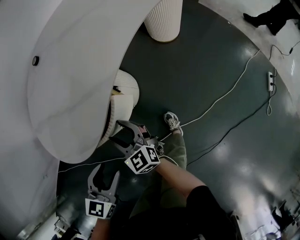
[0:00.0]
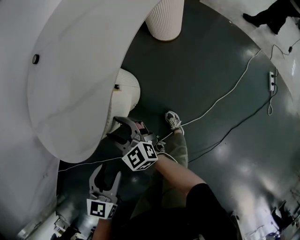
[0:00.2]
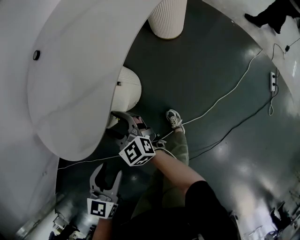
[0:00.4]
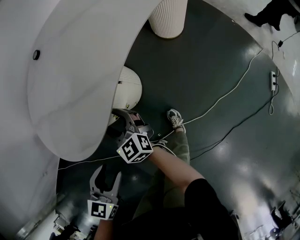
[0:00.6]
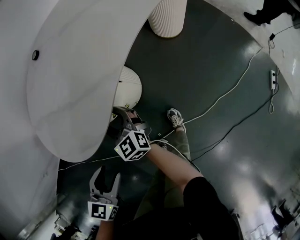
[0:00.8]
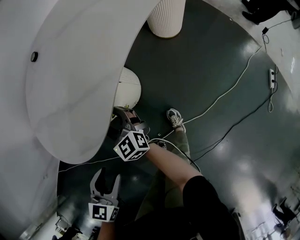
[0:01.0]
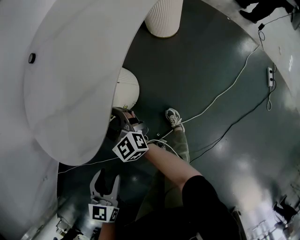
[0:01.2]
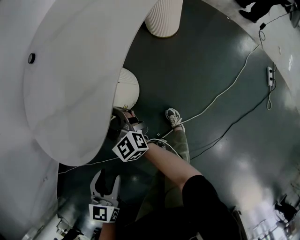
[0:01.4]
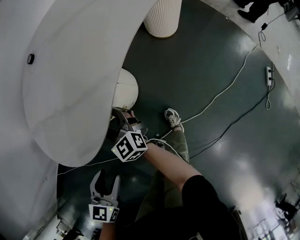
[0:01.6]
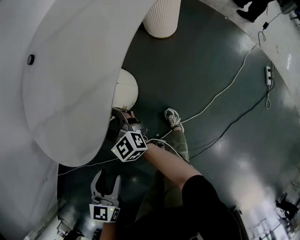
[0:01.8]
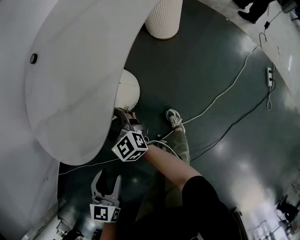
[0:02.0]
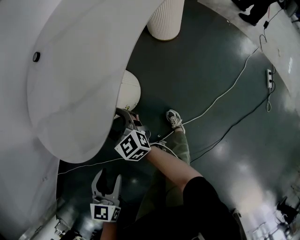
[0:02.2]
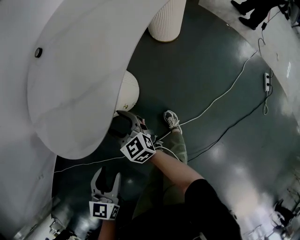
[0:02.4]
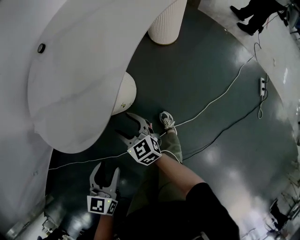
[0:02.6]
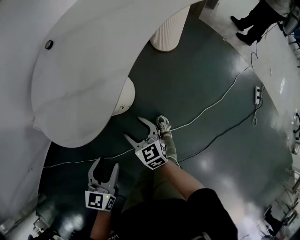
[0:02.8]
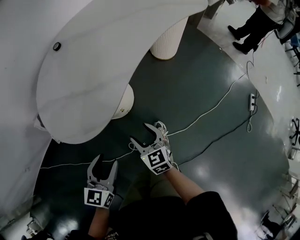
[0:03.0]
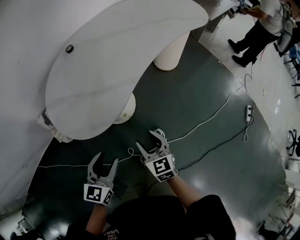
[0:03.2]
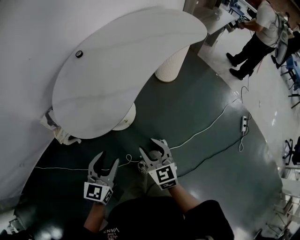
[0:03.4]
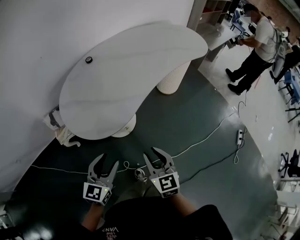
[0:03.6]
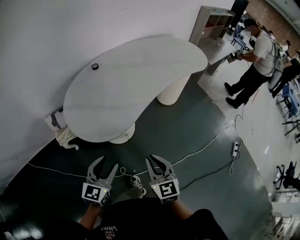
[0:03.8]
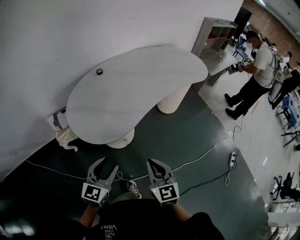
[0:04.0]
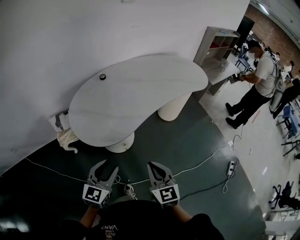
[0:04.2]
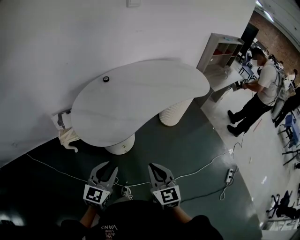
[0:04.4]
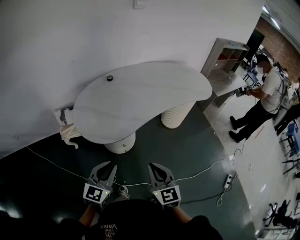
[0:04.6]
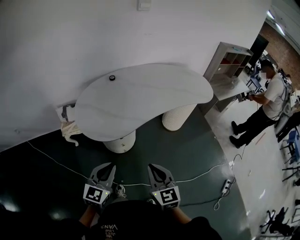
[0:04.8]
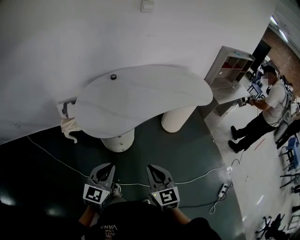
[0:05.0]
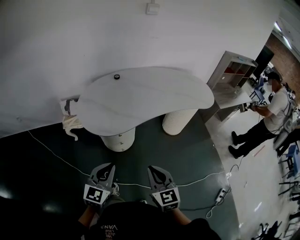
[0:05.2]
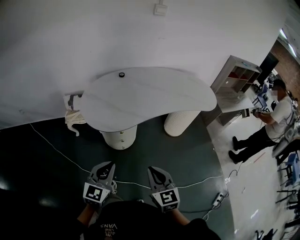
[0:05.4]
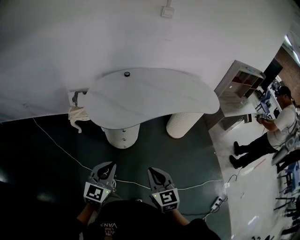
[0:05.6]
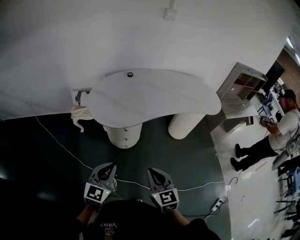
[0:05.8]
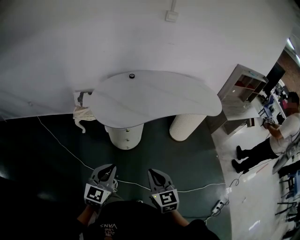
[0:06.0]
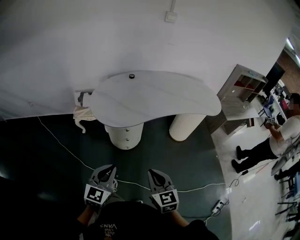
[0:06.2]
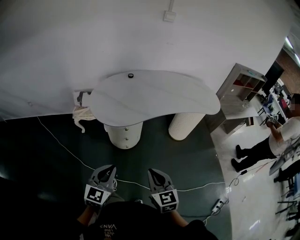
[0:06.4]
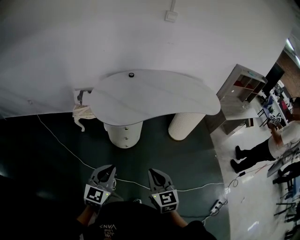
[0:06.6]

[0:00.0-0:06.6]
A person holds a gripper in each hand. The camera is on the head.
0:00.0 to 0:01.6: The left gripper moves roughly 5 cm. Meanwhile the right gripper moves forward, approximately 5 cm.
0:01.6 to 0:03.2: The right gripper moves backward, to the right and upward, approximately 25 cm, while the left gripper travels upward by about 10 cm.
0:03.2 to 0:05.0: The right gripper goes some 25 cm upward and to the right, rotates about 20 degrees, and closes up. Meanwhile the left gripper shifts roughly 15 cm upward, to the right and backward, and closes up.
0:05.0 to 0:06.6: Both grippers move backward, roughly 10 cm.

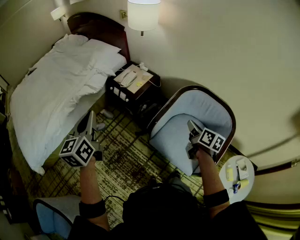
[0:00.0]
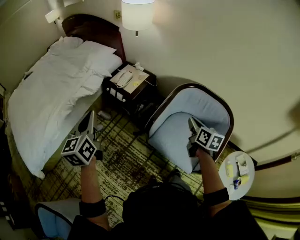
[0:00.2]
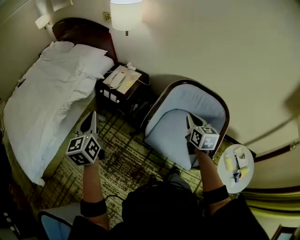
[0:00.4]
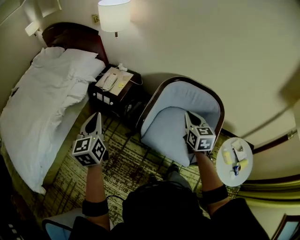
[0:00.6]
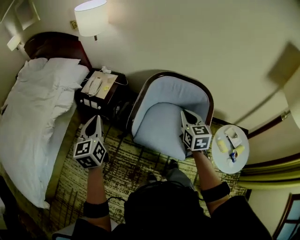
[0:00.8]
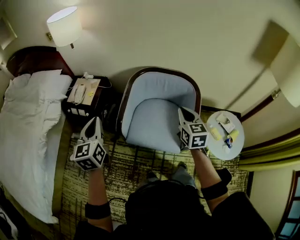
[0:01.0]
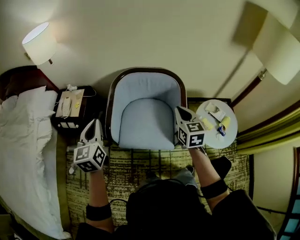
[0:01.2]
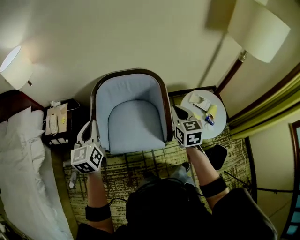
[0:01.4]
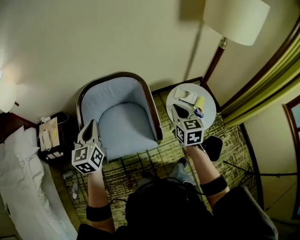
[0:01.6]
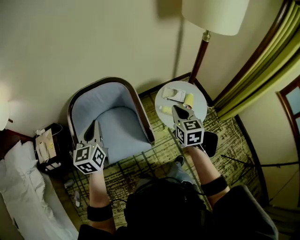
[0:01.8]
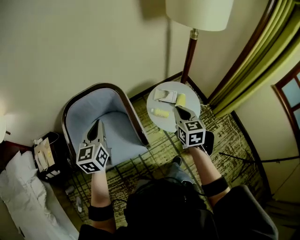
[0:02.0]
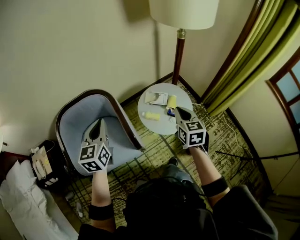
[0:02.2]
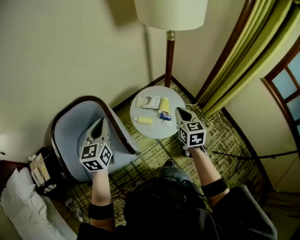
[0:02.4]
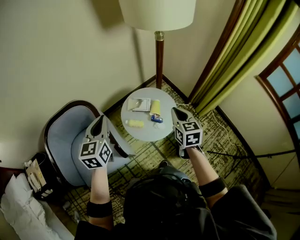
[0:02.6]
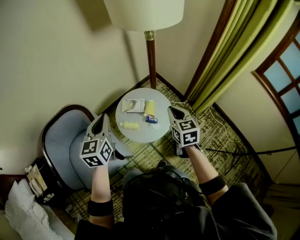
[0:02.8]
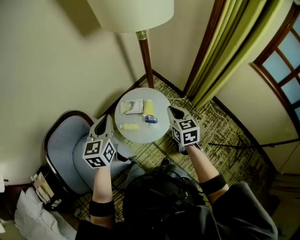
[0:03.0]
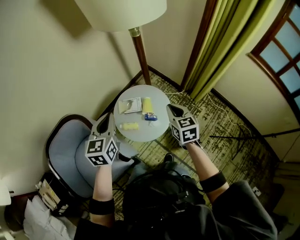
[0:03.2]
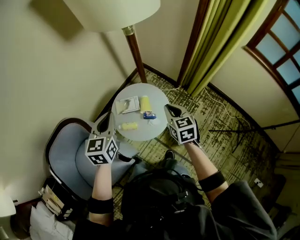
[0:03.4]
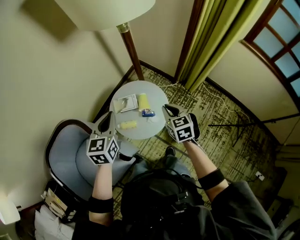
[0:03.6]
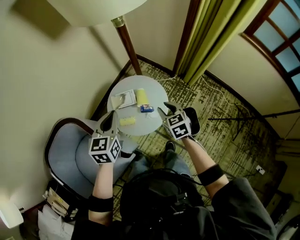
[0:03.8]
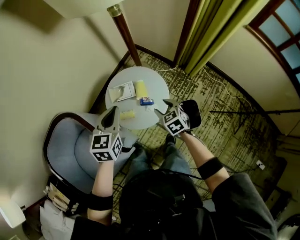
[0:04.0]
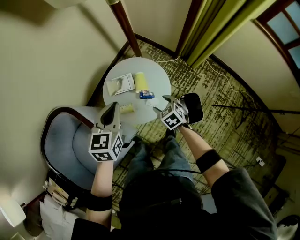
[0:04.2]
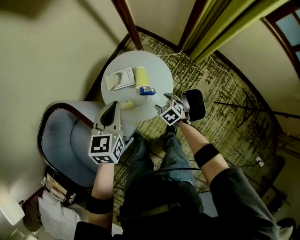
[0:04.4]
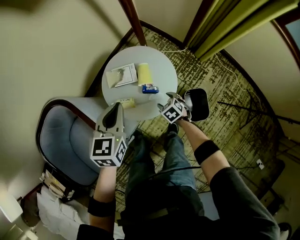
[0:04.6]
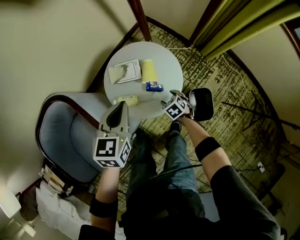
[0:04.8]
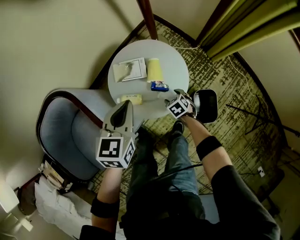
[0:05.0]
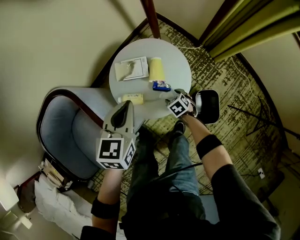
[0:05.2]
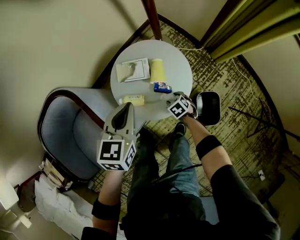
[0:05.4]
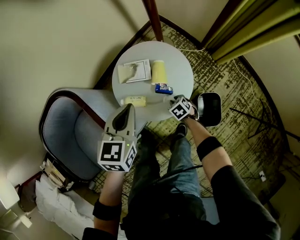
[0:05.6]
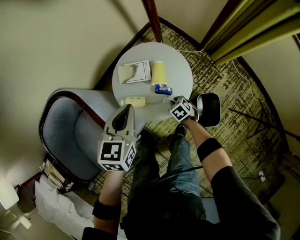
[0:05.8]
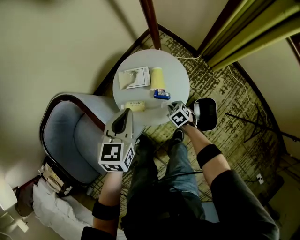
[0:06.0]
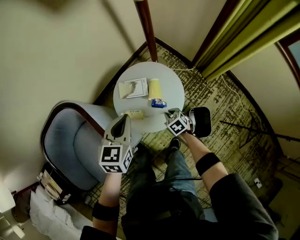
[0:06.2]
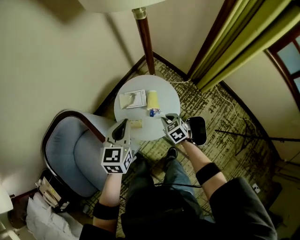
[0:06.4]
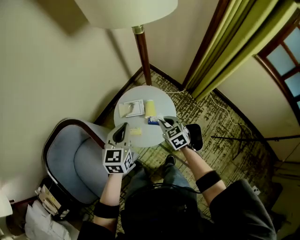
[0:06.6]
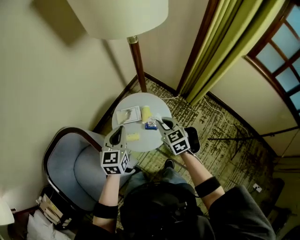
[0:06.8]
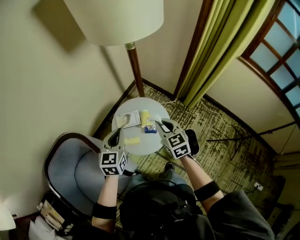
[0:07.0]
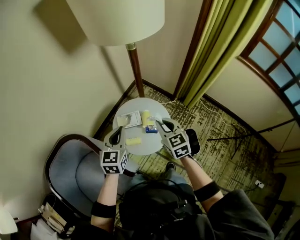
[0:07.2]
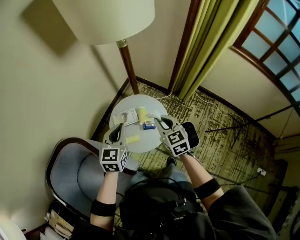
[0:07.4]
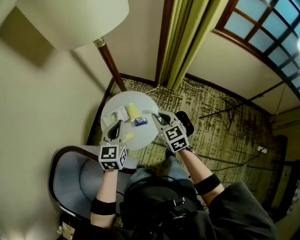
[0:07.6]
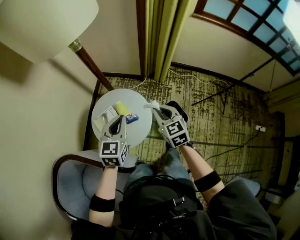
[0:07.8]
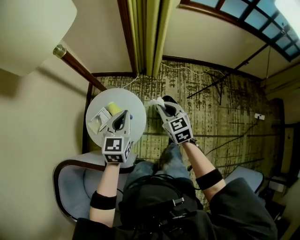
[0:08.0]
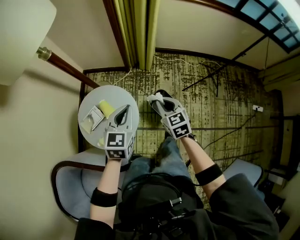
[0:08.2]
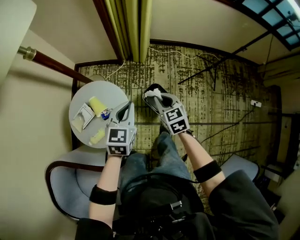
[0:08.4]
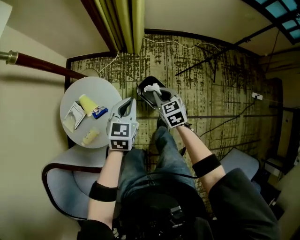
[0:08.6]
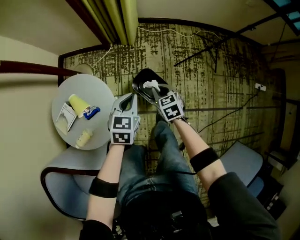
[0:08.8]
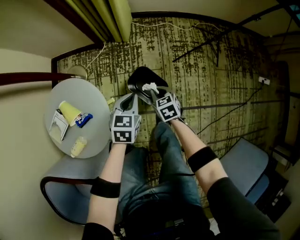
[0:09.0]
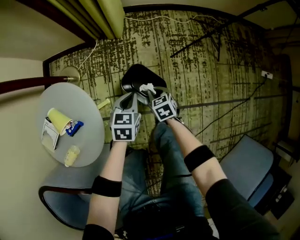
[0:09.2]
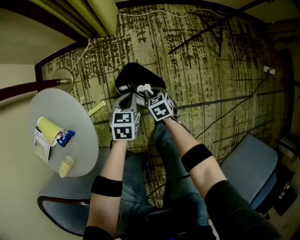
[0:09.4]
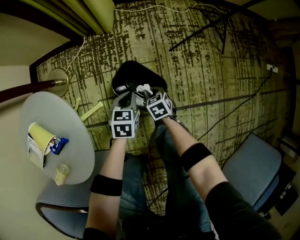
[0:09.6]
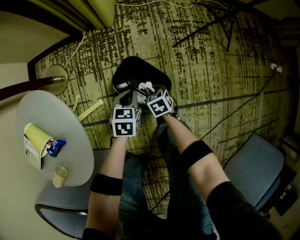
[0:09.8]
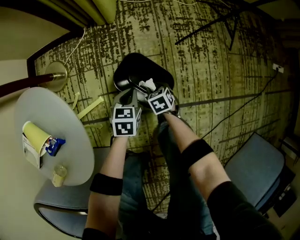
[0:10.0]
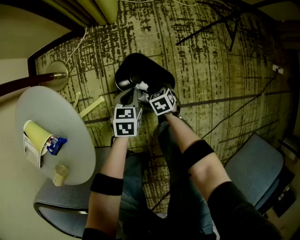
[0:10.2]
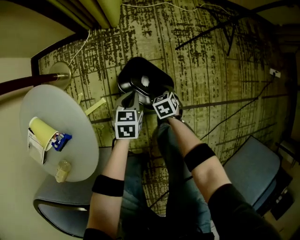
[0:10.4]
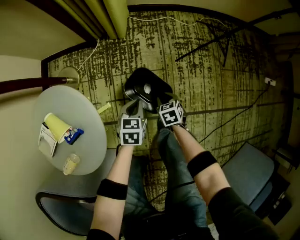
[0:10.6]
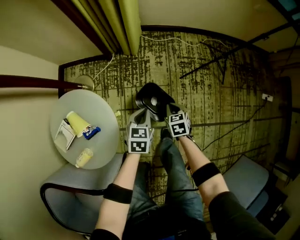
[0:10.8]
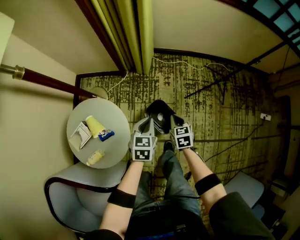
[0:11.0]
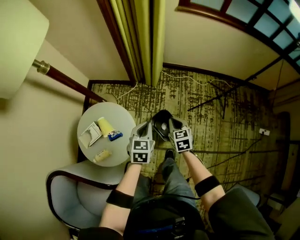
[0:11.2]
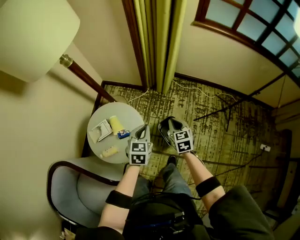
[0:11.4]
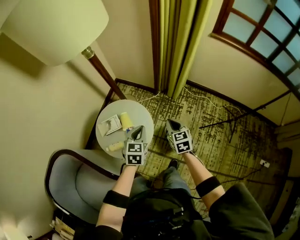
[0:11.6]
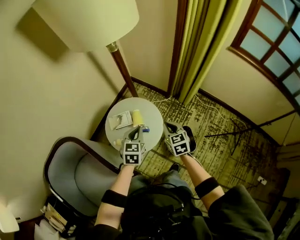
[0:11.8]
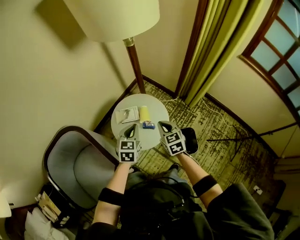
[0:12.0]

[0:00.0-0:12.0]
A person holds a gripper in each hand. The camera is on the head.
0:00.0 to 0:01.6: The right gripper changes place by some 40 cm, and swivels approximately 60 degrees, while the left gripper changes place by some 50 cm, and changes its angle by some 50 degrees.
0:01.6 to 0:03.0: The pair of grippers is taken about 50 cm. The left gripper turns by approximately 30 degrees. Meanwhile the right gripper rotates roughly 20 degrees.
0:03.0 to 0:04.4: The right gripper heads downward, covering roughly 35 cm, points its fingers some 30 degrees further downward, and opens. Meanwhile the left gripper is displaced downward and to the right by about 15 cm, and rotates some 20 degrees.
0:04.4 to 0:06.0: The right gripper is displaced downward by approximately 10 cm, and closes its fingers.
0:06.0 to 0:07.6: The left gripper moves upward, roughly 15 cm, and swivels some 20 degrees. The right gripper shifts approximately 40 cm upward, and tilts its fingers approximately 40 degrees upward.
0:07.6 to 0:09.0: The right gripper shifts about 40 cm downward, and swivels some 40 degrees; the left gripper ends up about 50 cm from where it was, and swivels approximately 40 degrees.
0:09.0 to 0:10.4: The grippers both shift downward by approximately 25 cm. The right gripper opens.
0:10.4 to 0:12.0: Both grippers move upward, about 60 cm. The left gripper changes its angle by roughly 50 degrees. Meanwhile the right gripper points its fingers about 40 degrees further upward, and closes.

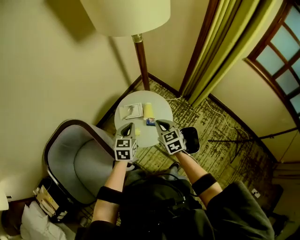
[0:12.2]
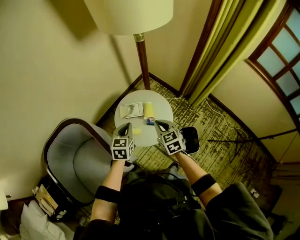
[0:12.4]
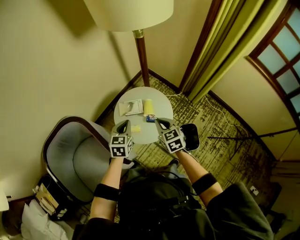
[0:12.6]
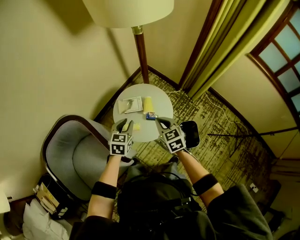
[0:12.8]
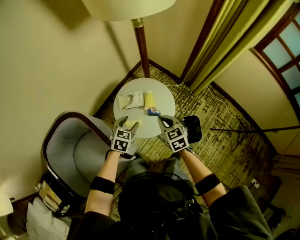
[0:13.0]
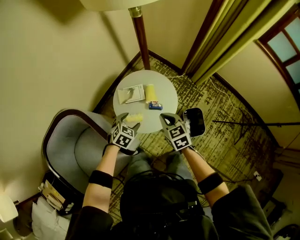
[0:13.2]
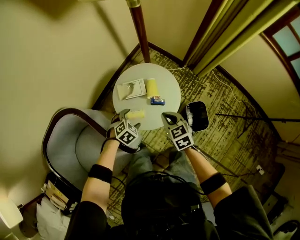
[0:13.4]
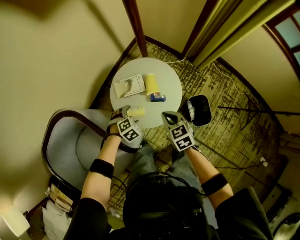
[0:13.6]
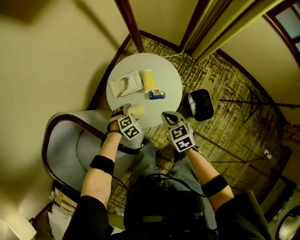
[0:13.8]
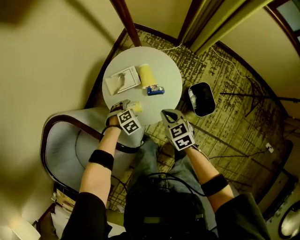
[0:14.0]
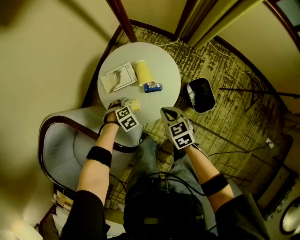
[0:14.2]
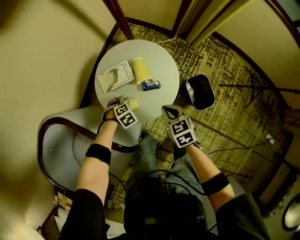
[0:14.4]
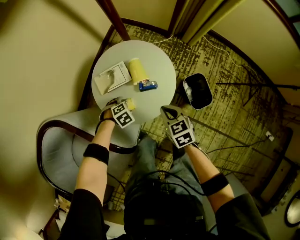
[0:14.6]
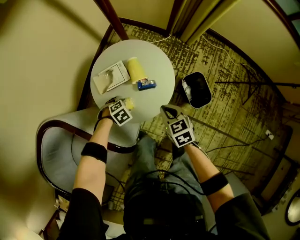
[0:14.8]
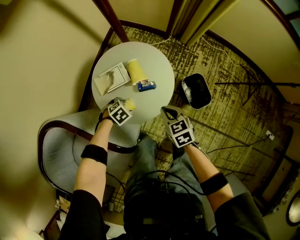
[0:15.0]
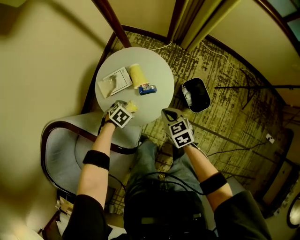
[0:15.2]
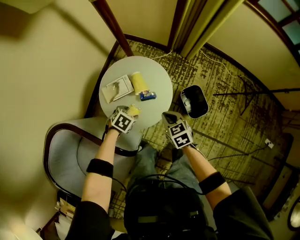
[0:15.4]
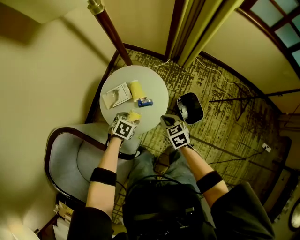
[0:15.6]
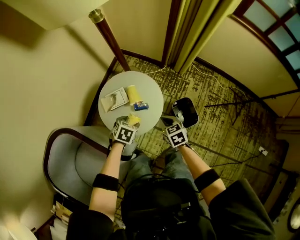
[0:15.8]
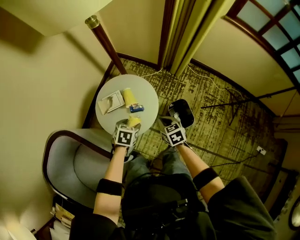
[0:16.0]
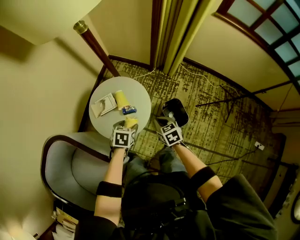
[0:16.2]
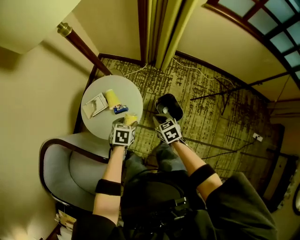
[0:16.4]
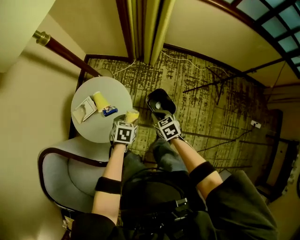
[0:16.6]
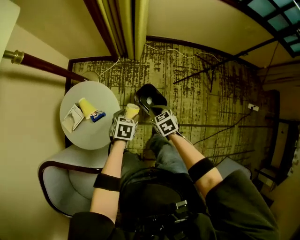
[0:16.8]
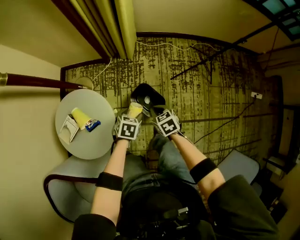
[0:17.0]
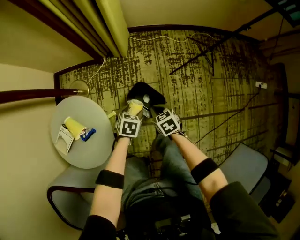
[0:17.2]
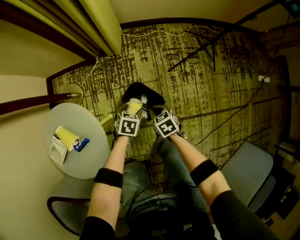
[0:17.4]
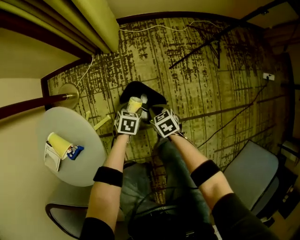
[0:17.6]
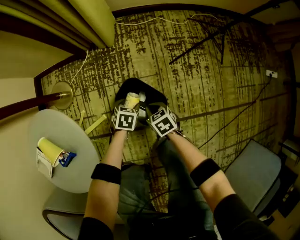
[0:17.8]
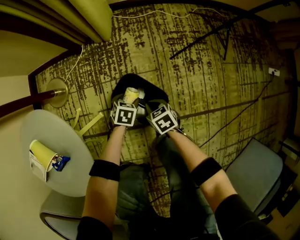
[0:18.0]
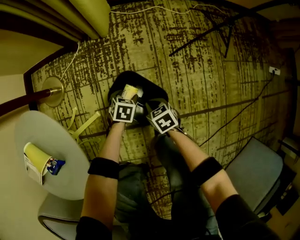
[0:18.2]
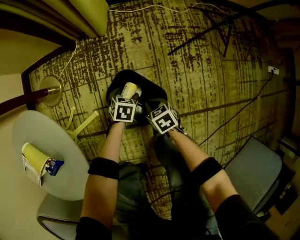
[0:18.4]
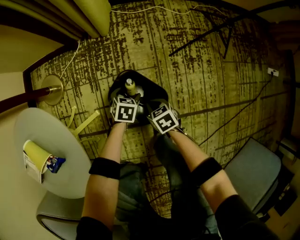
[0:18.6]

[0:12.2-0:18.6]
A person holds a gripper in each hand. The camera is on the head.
0:12.2 to 0:13.8: The right gripper shifts approximately 15 cm downward. The left gripper travels downward by roughly 35 cm, tips its fingers downward by approximately 40 degrees, and opens up.
0:13.8 to 0:15.4: The right gripper ends up roughly 5 cm from where it was. Meanwhile the left gripper ends up roughly 5 cm from where it was, and swivels approximately 30 degrees.
0:15.4 to 0:17.0: The right gripper ends up approximately 30 cm from where it was, and rotates some 30 degrees. Meanwhile the left gripper reaches roughly 15 cm upward, then returns.
0:17.0 to 0:18.6: Both grippers travel together downward, some 40 cm.
